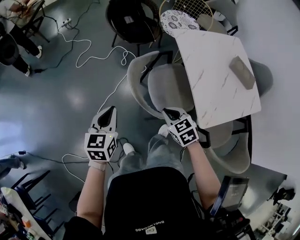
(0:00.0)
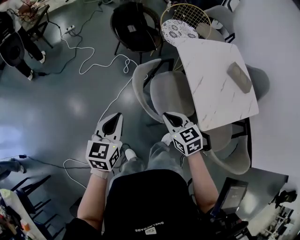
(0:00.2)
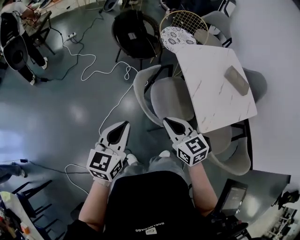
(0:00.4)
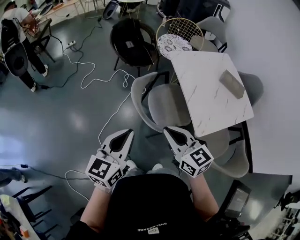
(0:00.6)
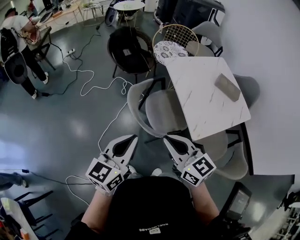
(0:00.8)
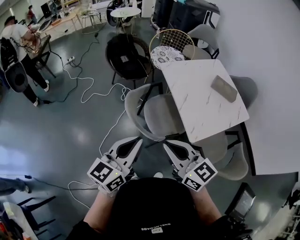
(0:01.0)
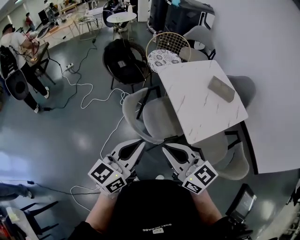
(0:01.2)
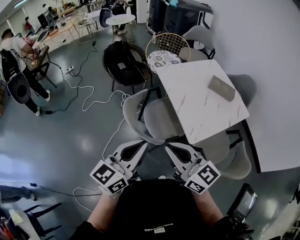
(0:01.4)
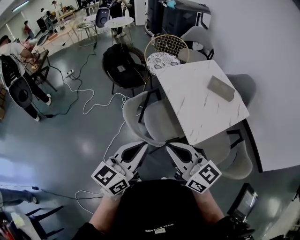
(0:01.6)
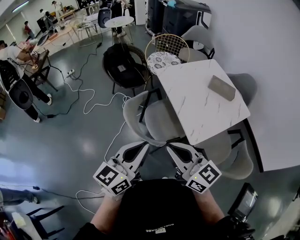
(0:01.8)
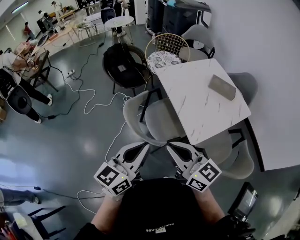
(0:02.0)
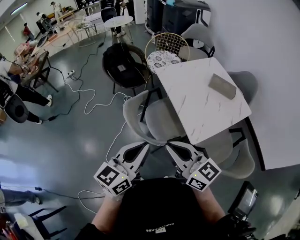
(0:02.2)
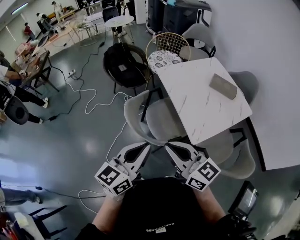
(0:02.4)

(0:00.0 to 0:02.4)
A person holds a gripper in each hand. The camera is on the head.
0:00.0 - 0:01.2: The left gripper is displaced upward, to the right and backward by about 30 cm, and swivels approximately 40 degrees; the right gripper is displaced upward and backward by some 35 cm, and tilts its fingers some 40 degrees upward.
0:01.2 - 0:02.4: The grippers make only small movements.

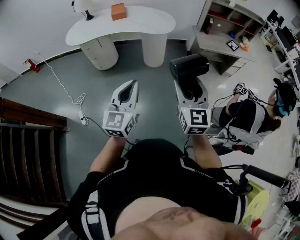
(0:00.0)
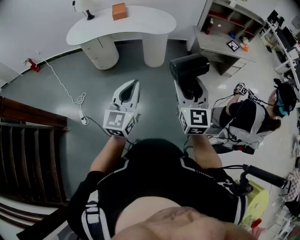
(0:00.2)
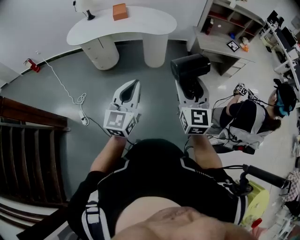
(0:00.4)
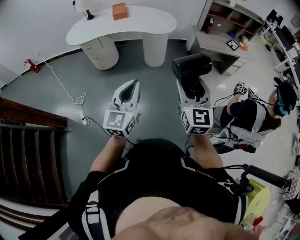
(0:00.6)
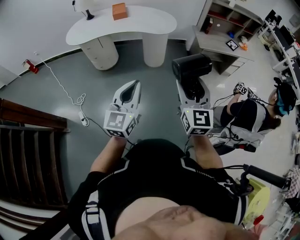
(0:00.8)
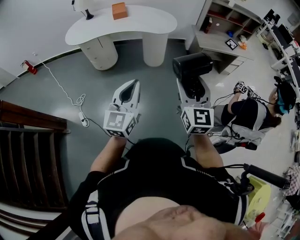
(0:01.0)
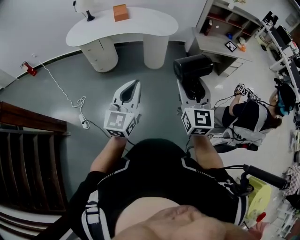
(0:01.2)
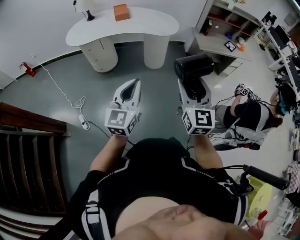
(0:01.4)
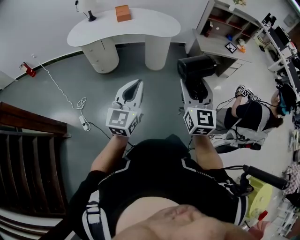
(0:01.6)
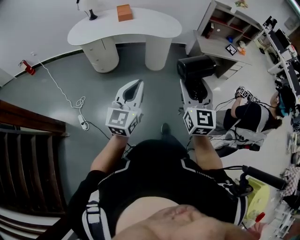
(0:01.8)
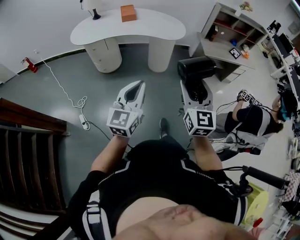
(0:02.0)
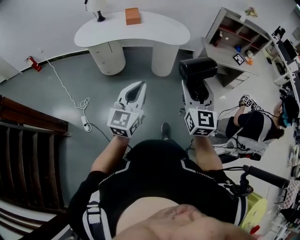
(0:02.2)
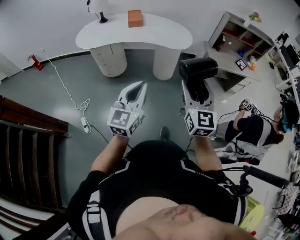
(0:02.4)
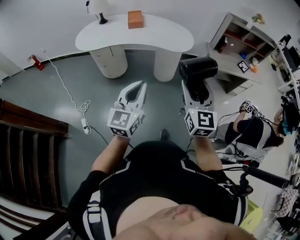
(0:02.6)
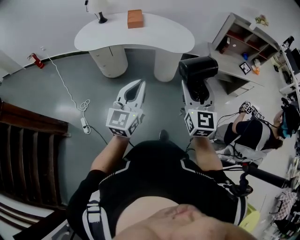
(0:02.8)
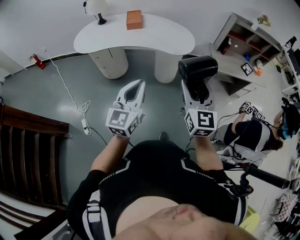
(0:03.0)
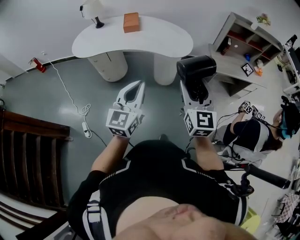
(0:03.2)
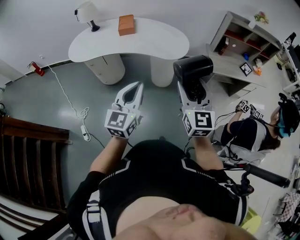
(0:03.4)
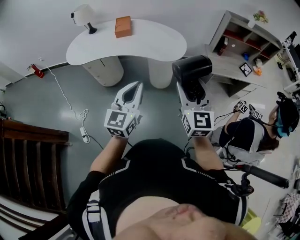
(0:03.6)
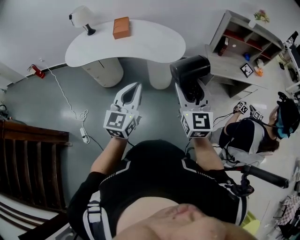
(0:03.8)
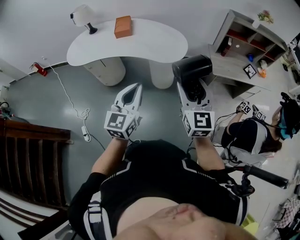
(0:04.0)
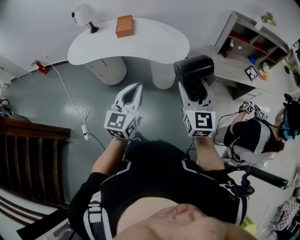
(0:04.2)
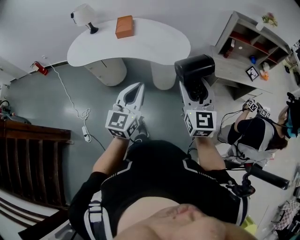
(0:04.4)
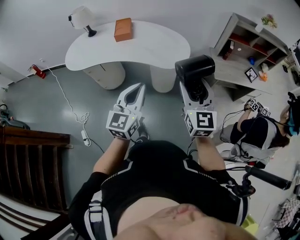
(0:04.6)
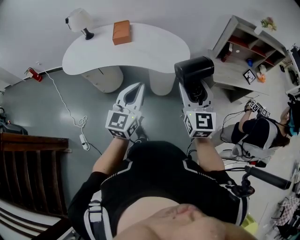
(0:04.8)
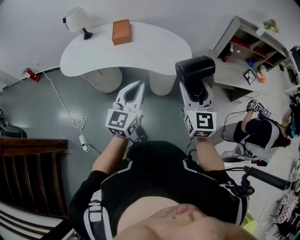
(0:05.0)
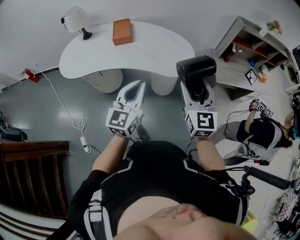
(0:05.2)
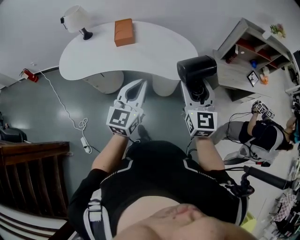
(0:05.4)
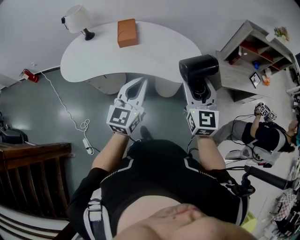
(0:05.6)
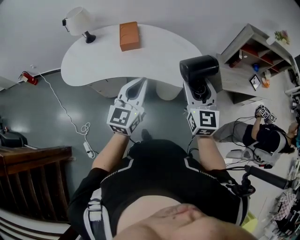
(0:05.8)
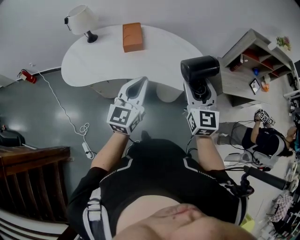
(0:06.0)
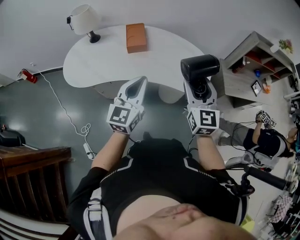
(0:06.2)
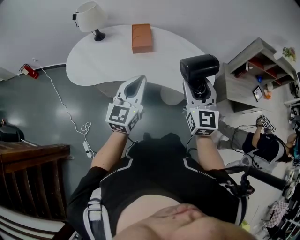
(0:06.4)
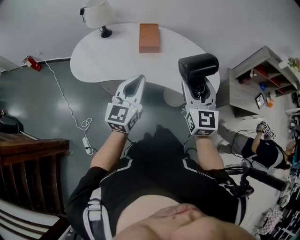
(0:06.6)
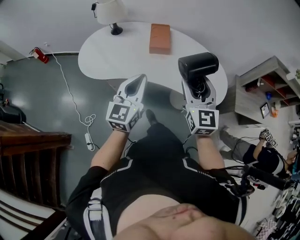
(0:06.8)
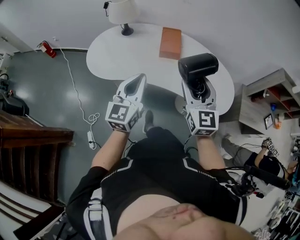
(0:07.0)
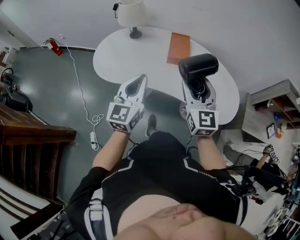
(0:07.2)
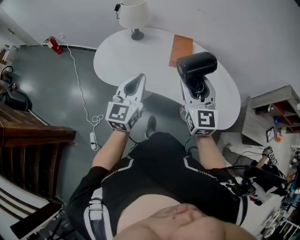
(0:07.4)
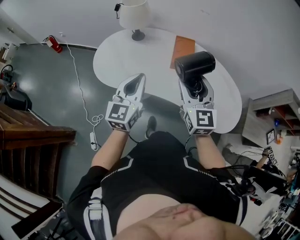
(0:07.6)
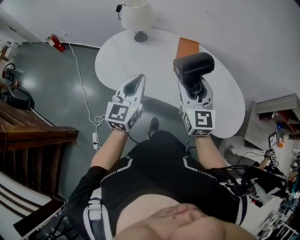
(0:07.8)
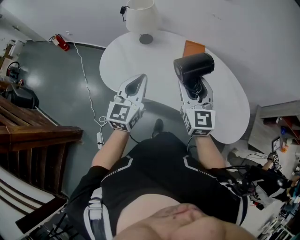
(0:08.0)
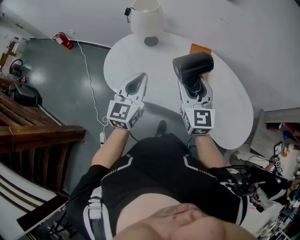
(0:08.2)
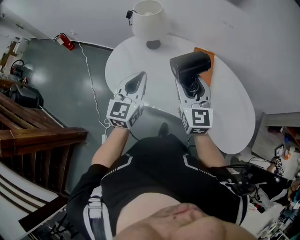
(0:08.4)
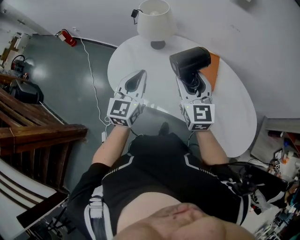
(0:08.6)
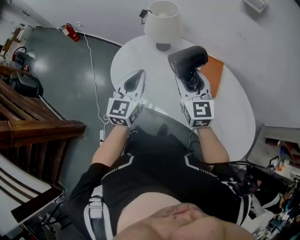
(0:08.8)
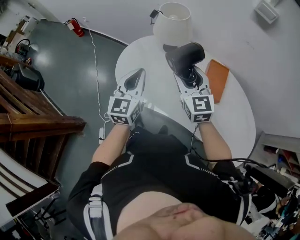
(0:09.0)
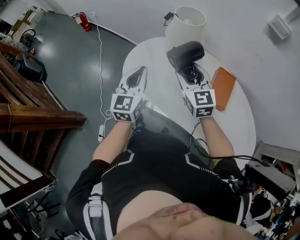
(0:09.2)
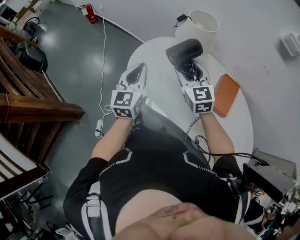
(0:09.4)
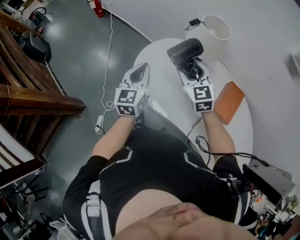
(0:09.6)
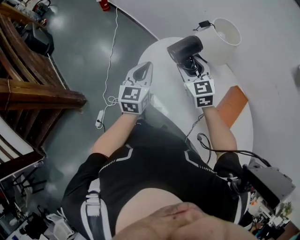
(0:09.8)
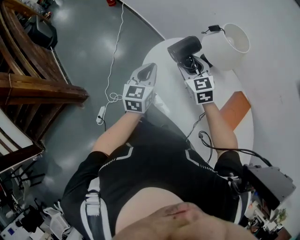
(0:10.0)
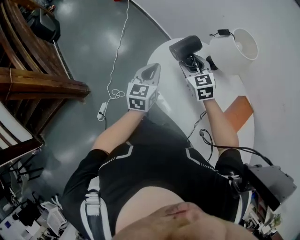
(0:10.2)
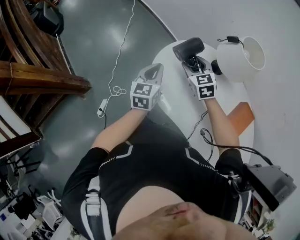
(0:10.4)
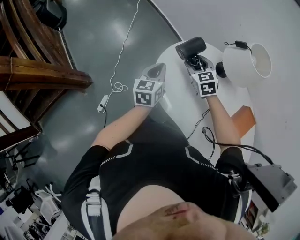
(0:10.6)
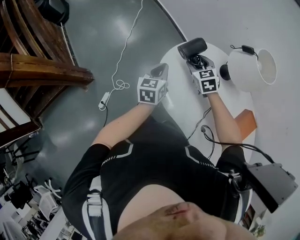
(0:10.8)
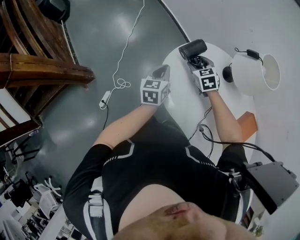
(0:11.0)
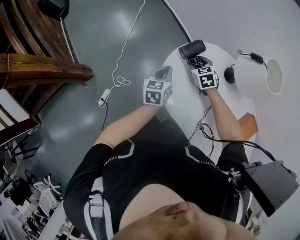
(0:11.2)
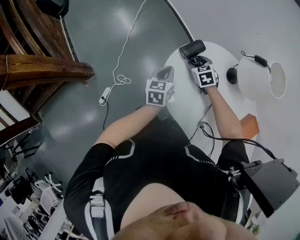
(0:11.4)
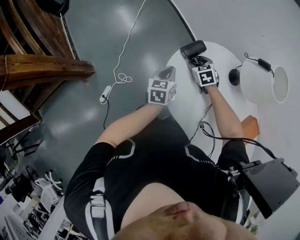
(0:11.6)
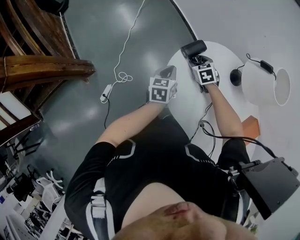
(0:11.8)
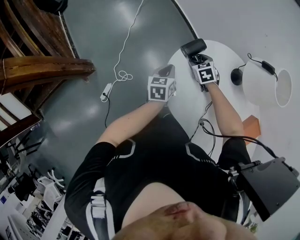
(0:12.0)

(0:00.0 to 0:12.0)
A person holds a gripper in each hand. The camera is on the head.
0:00.0 - 0:01.6: The grippers both shift to the left by roughly 10 cm.
0:01.6 - 0:03.0: The grippers both shift forward by about 20 cm.
0:03.0 - 0:04.4: The two grippers go some 15 cm forward and to the right.
0:04.4 - 0:06.0: The two grippers go approximately 30 cm forward and to the left.
0:06.0 - 0:07.6: Both grippers travel together to the left and forward, roughly 30 cm. The left gripper swivels roughly 20 degrees, while the right gripper changes its angle by some 20 degrees.
0:07.6 - 0:09.0: The grippers both shift forward and to the left by roughly 25 cm. The right gripper turns by some 20 degrees.
0:09.0 - 0:10.4: The left gripper travels to the left, forward and downward by some 25 cm, and swivels approximately 30 degrees, while the right gripper heads forward, to the left and downward, covering about 30 cm, and turns by approximately 40 degrees.
0:10.4 - 0:12.0: The grippers both shift downward and forward by about 15 cm. The left gripper swivels approximately 20 degrees; the right gripper rotates about 30 degrees.

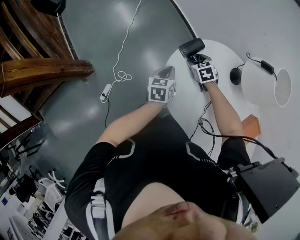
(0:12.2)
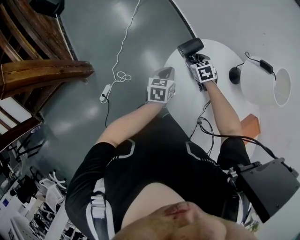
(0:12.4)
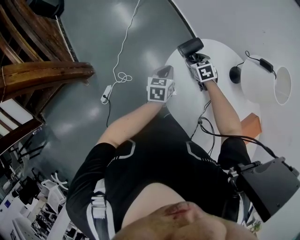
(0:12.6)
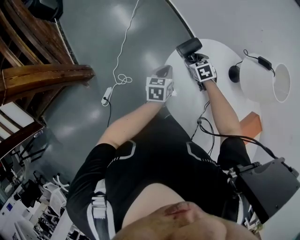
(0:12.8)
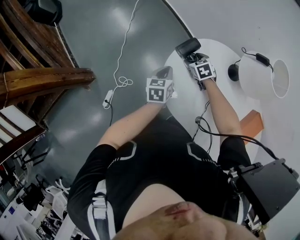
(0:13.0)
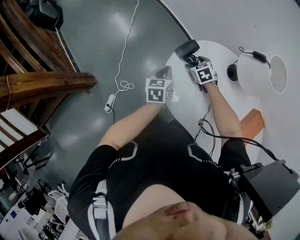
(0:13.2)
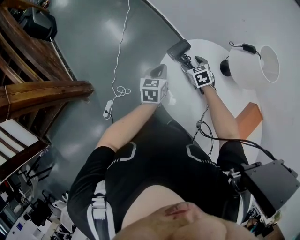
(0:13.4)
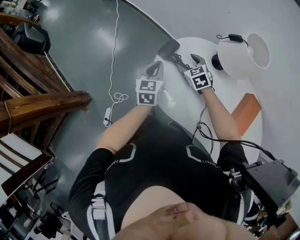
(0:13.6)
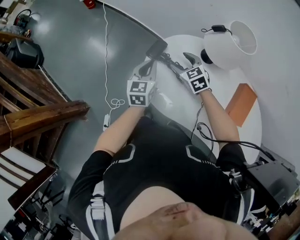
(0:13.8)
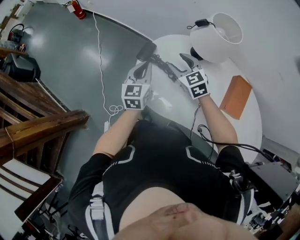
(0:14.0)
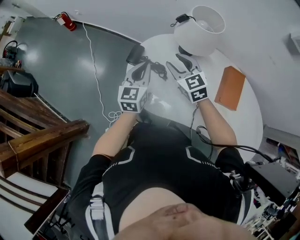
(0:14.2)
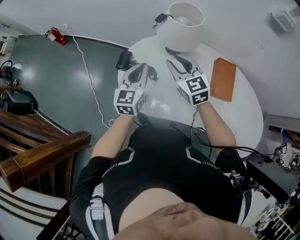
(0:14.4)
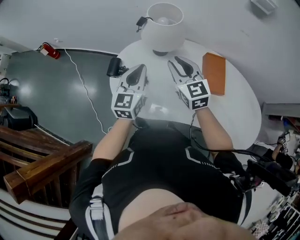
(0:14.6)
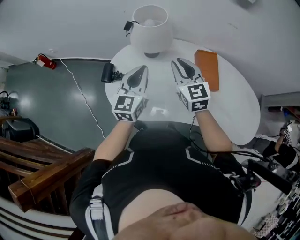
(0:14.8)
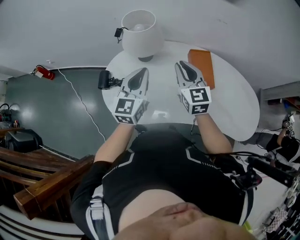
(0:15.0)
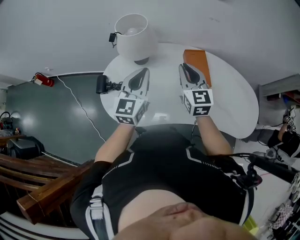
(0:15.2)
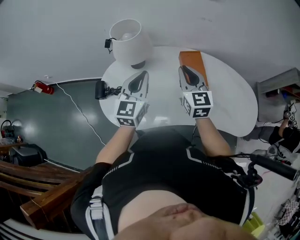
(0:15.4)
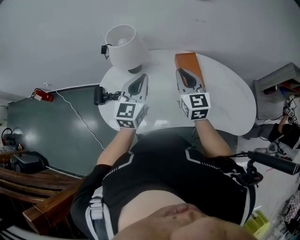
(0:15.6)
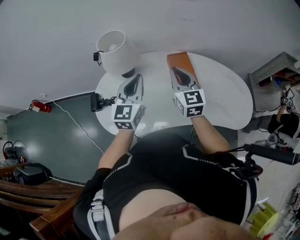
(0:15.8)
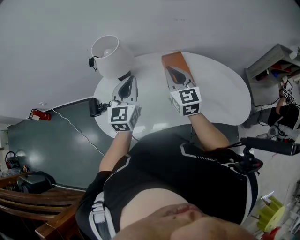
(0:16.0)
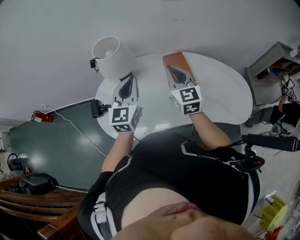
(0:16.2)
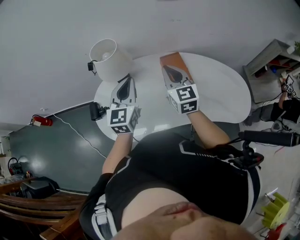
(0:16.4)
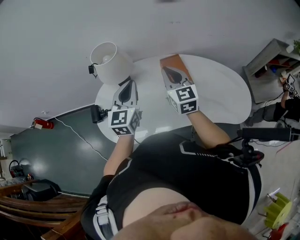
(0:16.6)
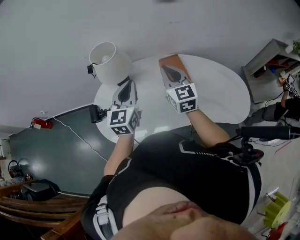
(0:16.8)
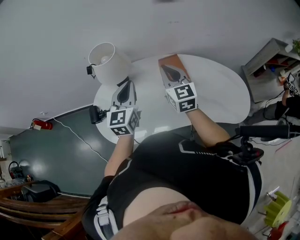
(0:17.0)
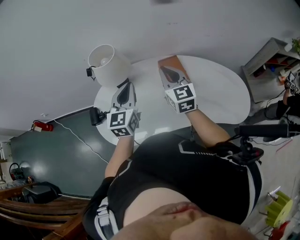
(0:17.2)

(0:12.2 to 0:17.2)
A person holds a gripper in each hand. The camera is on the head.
0:12.2 - 0:13.8: The grippers both shift upward by roughly 15 cm. The right gripper rotates about 20 degrees; the left gripper swivels approximately 30 degrees.
0:13.8 - 0:15.6: The left gripper changes place by approximately 35 cm, and rotates about 50 degrees, while the right gripper ends up some 40 cm from where it was, angles its fingers upward, by about 30 degrees, and closes.
0:15.6 - 0:17.2: The grippers move only a little.

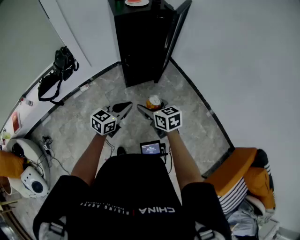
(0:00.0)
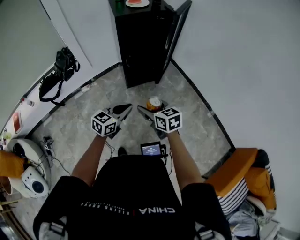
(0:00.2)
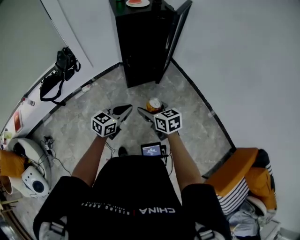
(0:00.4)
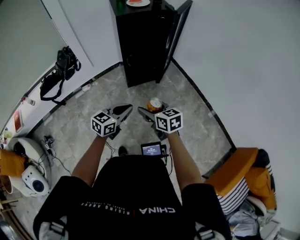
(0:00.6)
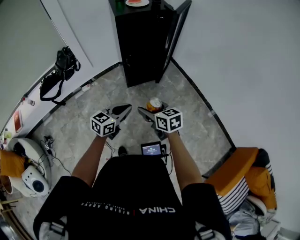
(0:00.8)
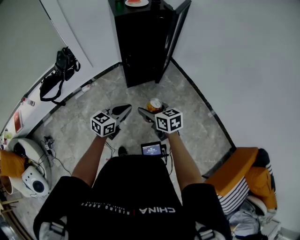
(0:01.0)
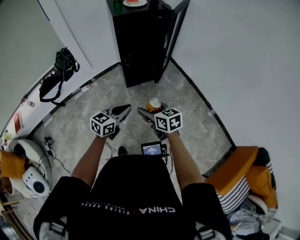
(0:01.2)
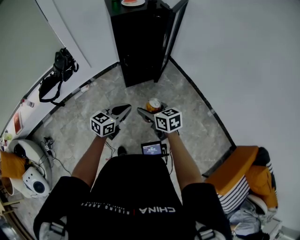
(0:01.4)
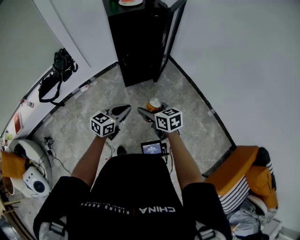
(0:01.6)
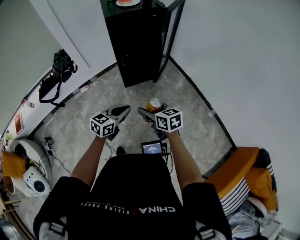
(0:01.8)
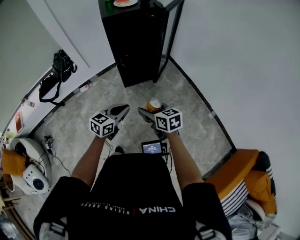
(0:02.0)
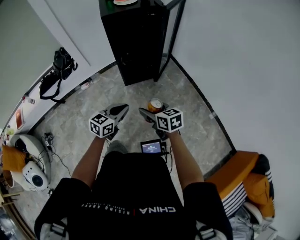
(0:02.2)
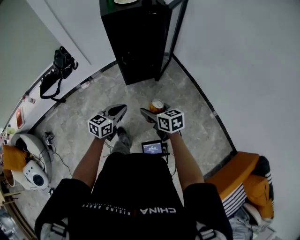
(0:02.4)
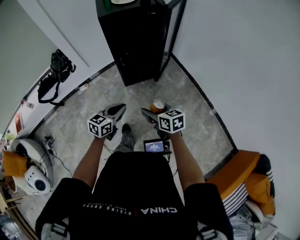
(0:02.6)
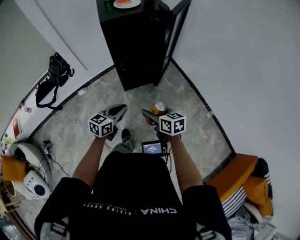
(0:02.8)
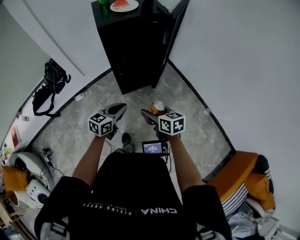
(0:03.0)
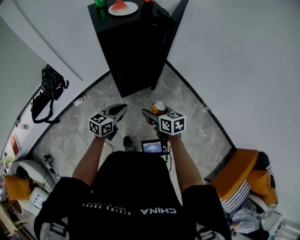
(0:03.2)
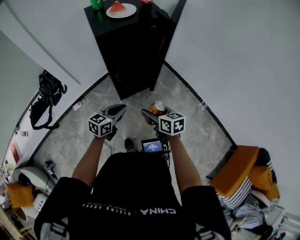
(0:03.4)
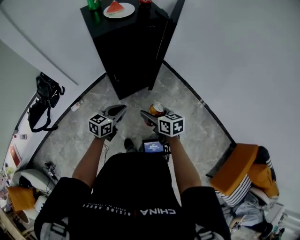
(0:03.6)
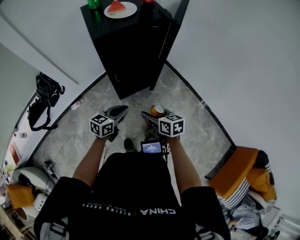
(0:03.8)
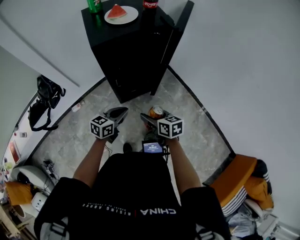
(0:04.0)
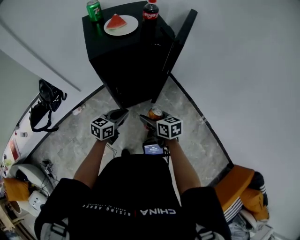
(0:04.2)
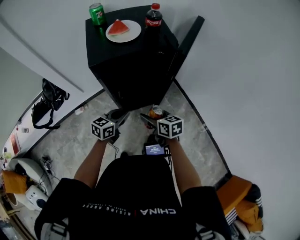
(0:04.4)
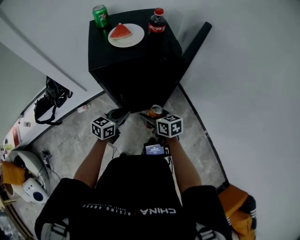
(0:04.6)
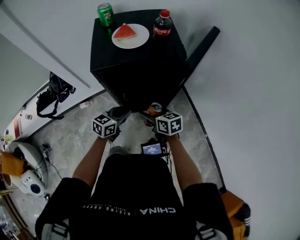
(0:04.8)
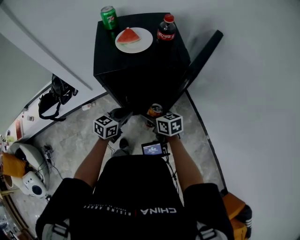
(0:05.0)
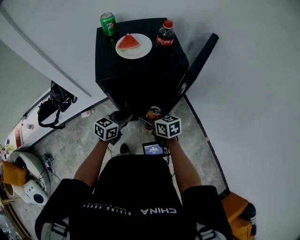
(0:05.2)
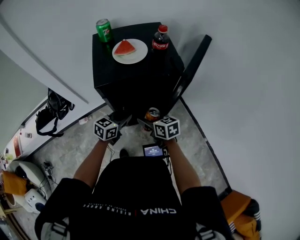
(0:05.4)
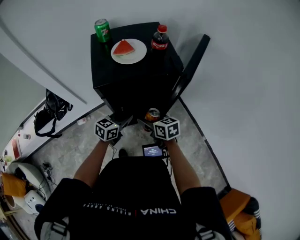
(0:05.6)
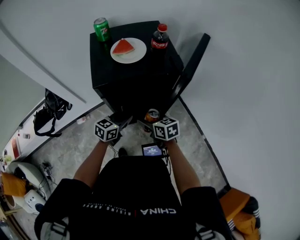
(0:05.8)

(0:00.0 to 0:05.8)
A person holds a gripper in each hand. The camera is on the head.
0:00.0 - 0:01.4: The grippers make only small movements.
0:01.4 - 0:02.8: The left gripper shifts about 10 cm forward, while the right gripper shifts about 10 cm forward and to the right.
0:02.8 - 0:04.4: Both grippers travel together forward, some 25 cm.
0:04.4 - 0:05.8: Both grippers travel together forward, roughly 10 cm.
